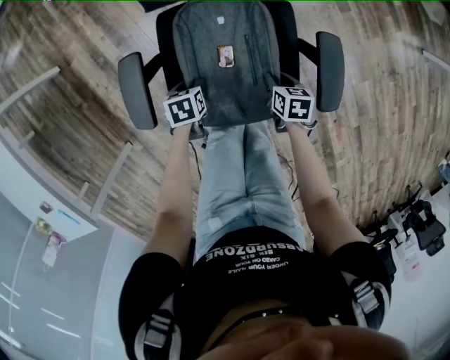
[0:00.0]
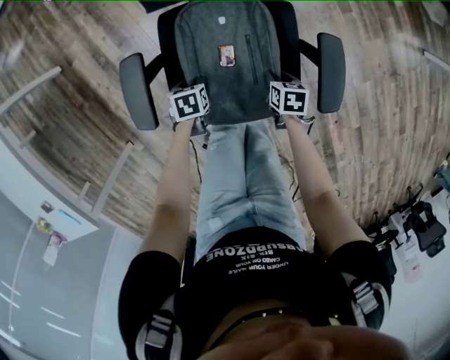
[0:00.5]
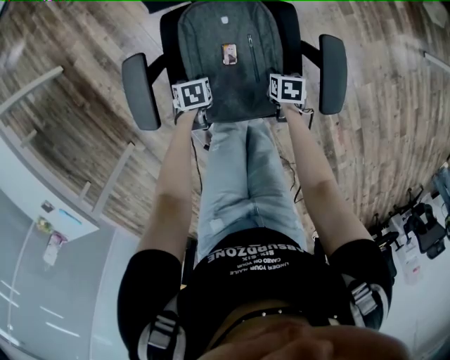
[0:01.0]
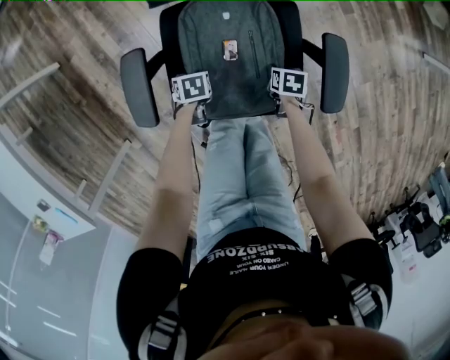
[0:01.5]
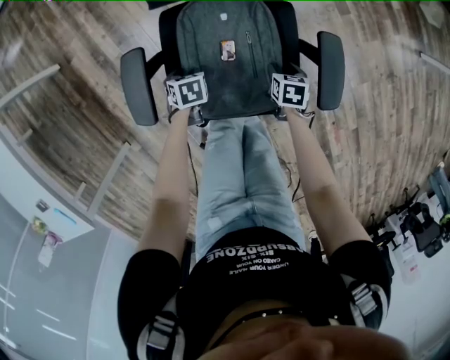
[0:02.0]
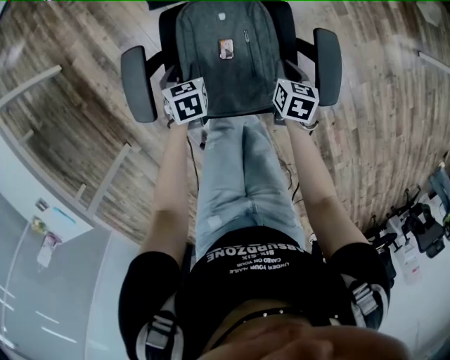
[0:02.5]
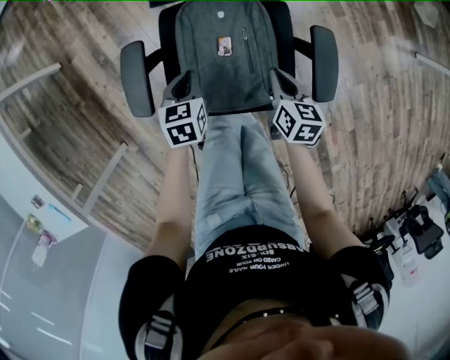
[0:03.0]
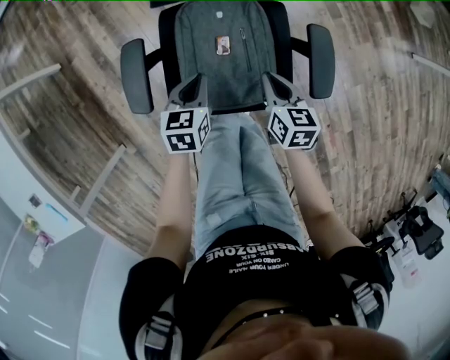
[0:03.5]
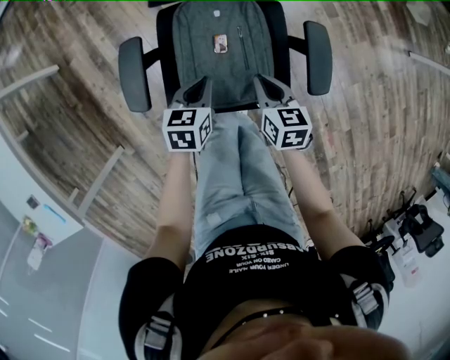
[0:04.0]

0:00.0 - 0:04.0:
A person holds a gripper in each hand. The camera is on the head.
0:00.0 - 0:02.0: The right gripper opens.
0:02.0 - 0:04.0: The grippers both shift upward by approximately 15 cm. The left gripper changes its angle by about 30 degrees, and closes its fingers. Meanwhile the right gripper changes its angle by some 30 degrees, and closes up.

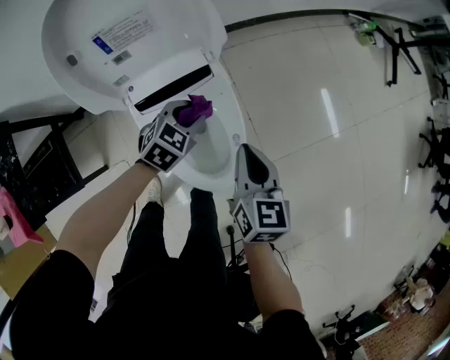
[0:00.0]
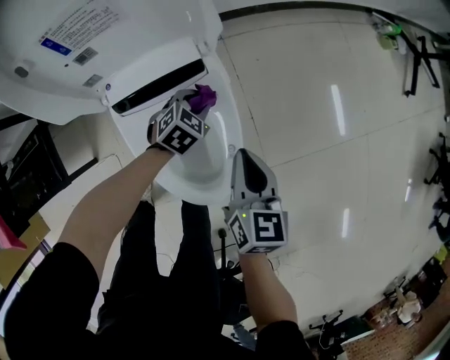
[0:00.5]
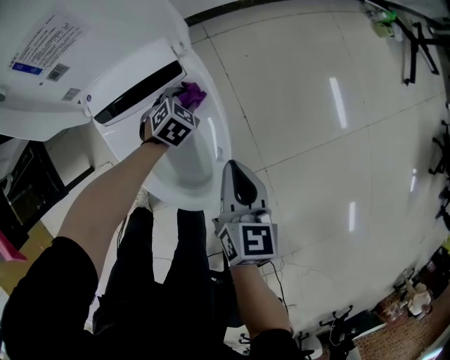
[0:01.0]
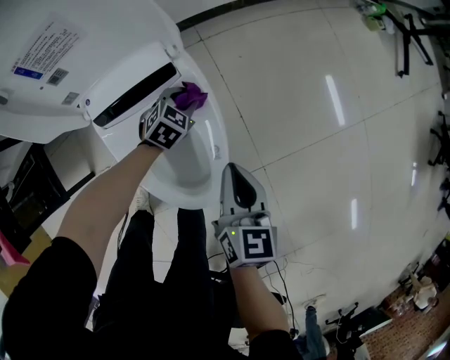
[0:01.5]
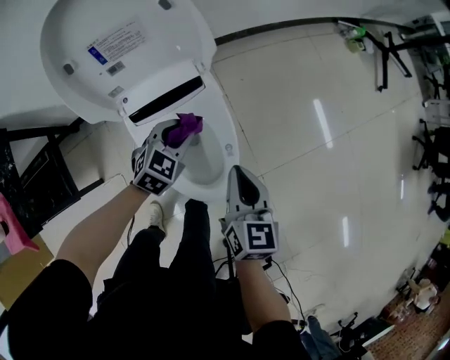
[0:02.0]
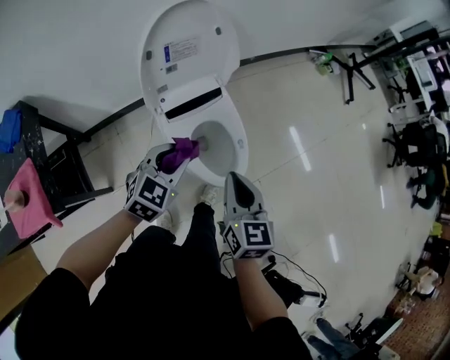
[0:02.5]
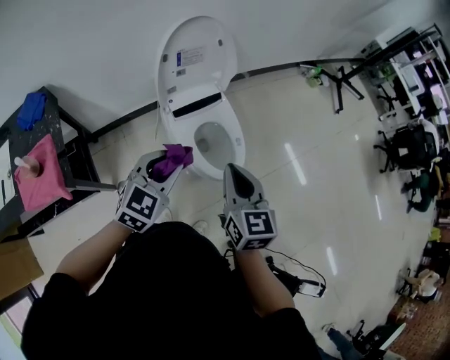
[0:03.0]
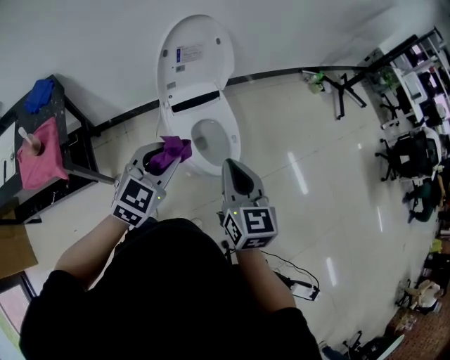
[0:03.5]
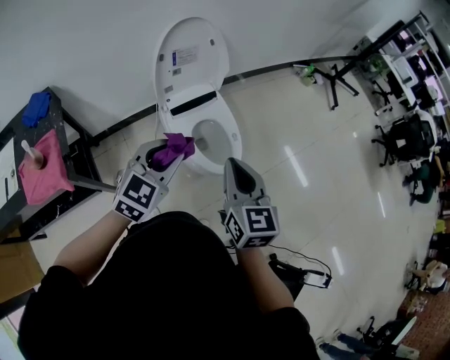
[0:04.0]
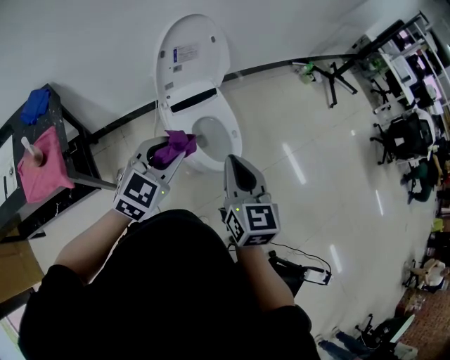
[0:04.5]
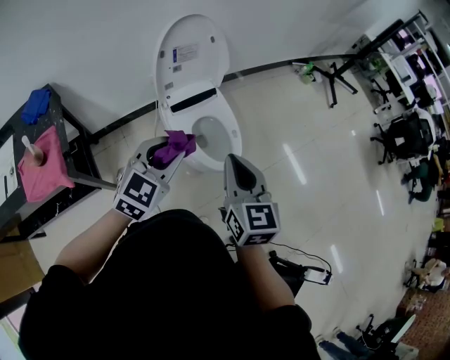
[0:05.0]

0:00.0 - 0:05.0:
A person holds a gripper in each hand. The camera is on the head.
0:00.0 - 0:02.5: The right gripper heads backward, upward and to the left, covering approximately 30 cm, while the left gripper heads upward, backward and to the left, covering about 35 cm, and changes its angle by roughly 20 degrees.
0:02.5 - 0:05.0: The two grippers go some 20 cm backward and upward.

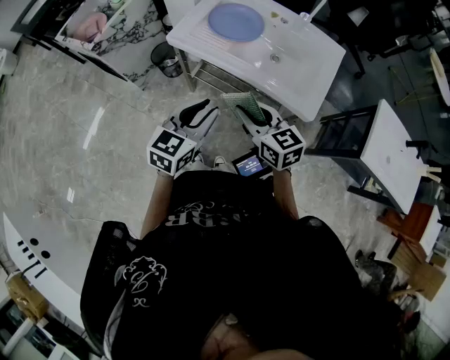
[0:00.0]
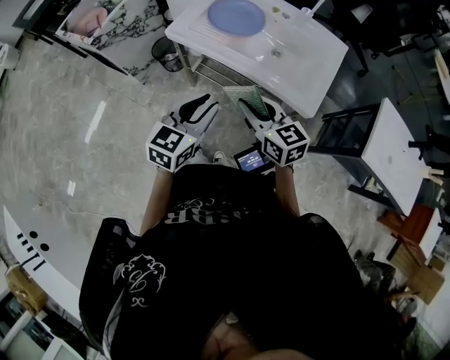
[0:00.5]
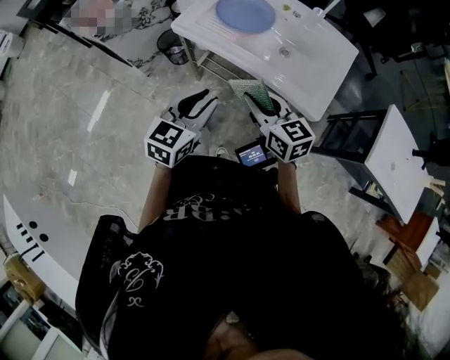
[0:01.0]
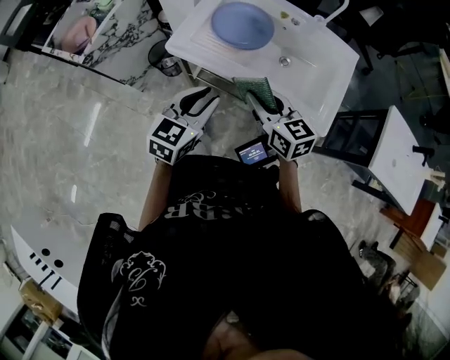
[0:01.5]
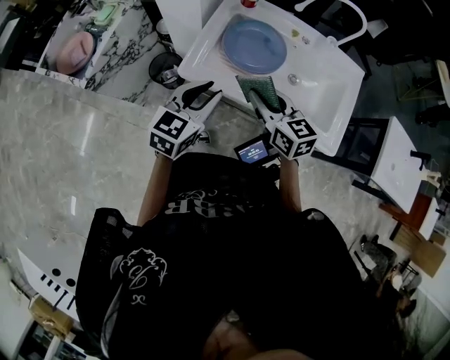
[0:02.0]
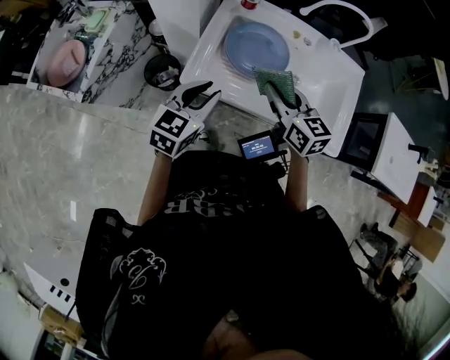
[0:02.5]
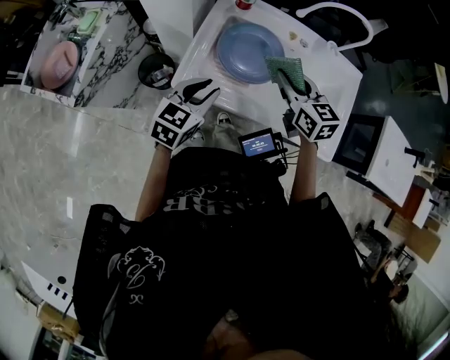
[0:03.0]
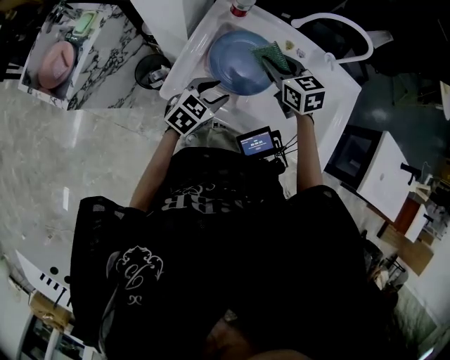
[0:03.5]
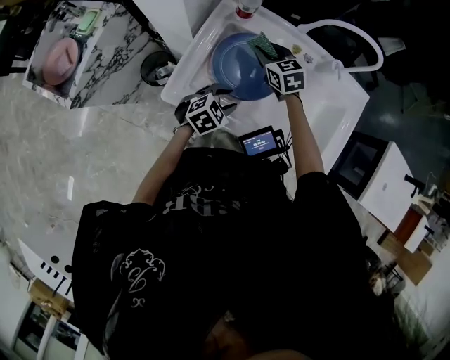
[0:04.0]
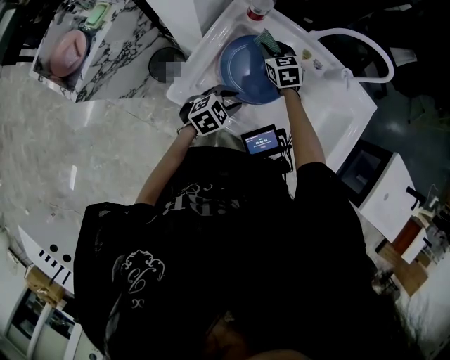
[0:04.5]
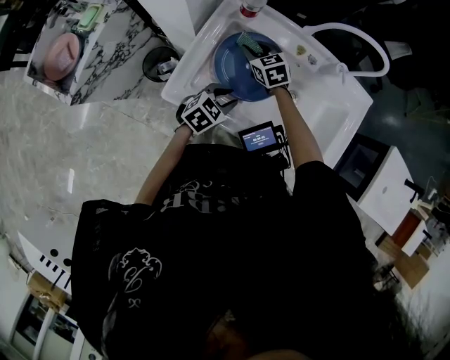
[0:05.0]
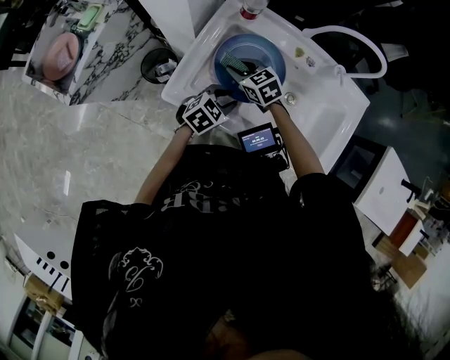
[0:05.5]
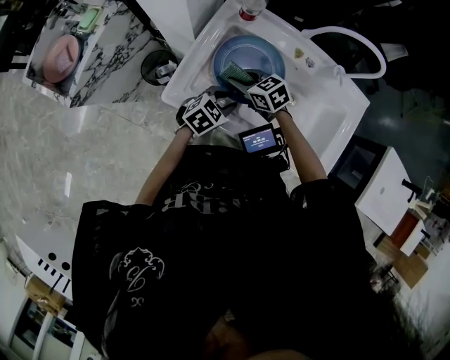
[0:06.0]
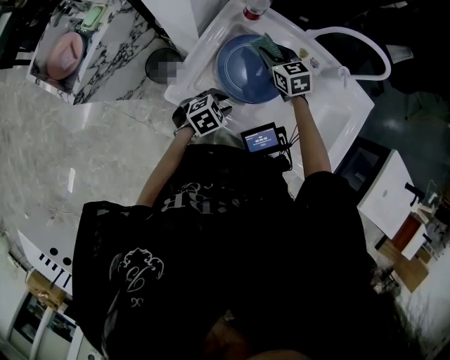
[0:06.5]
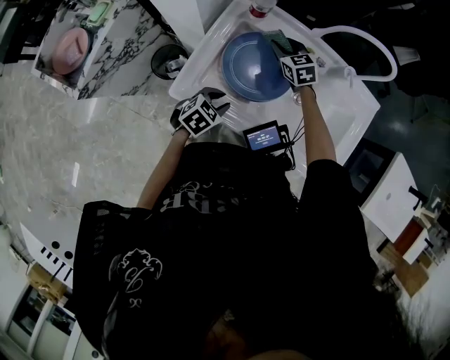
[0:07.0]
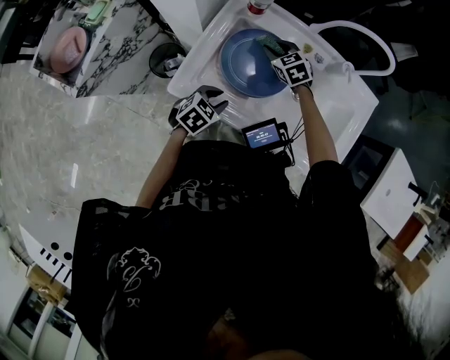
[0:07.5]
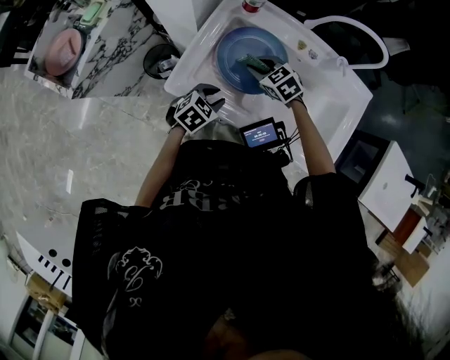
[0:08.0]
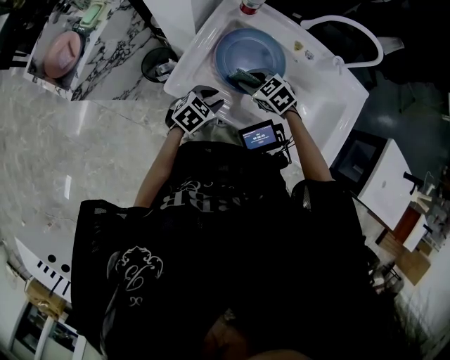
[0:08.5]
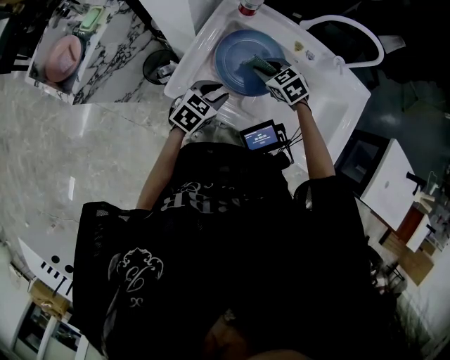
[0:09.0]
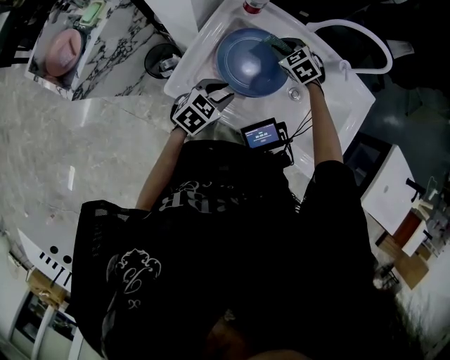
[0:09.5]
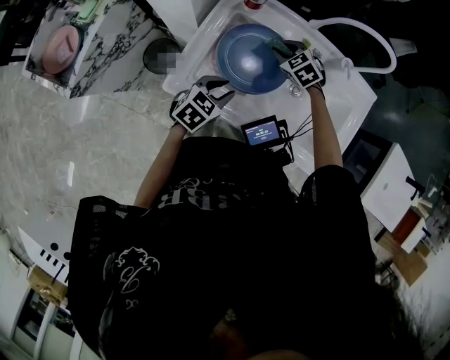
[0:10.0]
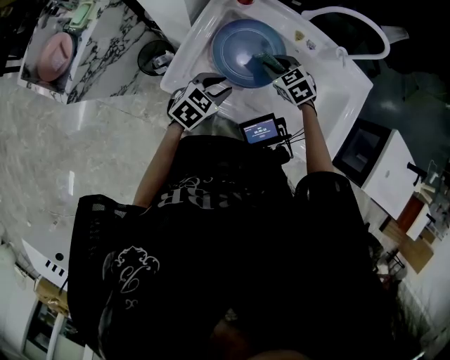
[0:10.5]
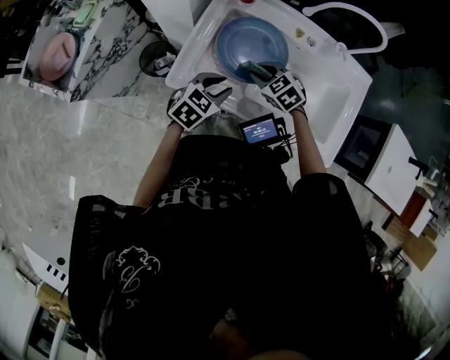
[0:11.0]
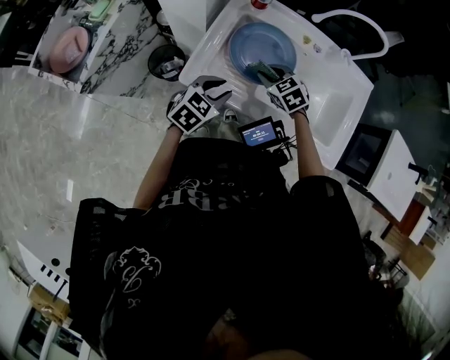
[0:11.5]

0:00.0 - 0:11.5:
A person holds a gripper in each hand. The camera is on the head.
0:00.0 - 0:02.0: The left gripper heads forward and to the left, covering about 25 cm. The right gripper moves forward, some 25 cm.
0:02.0 - 0:04.0: The left gripper shifts about 25 cm downward, forward and to the right, and changes its angle by roughly 40 degrees, while the right gripper travels forward and downward by roughly 30 cm, and turns by approximately 20 degrees.
0:04.0 - 0:06.0: The right gripper ends up some 15 cm from where it was, and changes its angle by approximately 30 degrees.
0:06.0 - 0:07.5: The right gripper moves some 15 cm, and changes its angle by some 20 degrees. The left gripper changes place by some 5 cm.
0:07.5 - 0:09.5: The right gripper reaches some 15 cm backward, then returns; the left gripper moves about 5 cm.
0:09.5 - 0:11.5: The right gripper moves backward, roughly 15 cm. Meanwhile the left gripper goes roughly 5 cm backward.

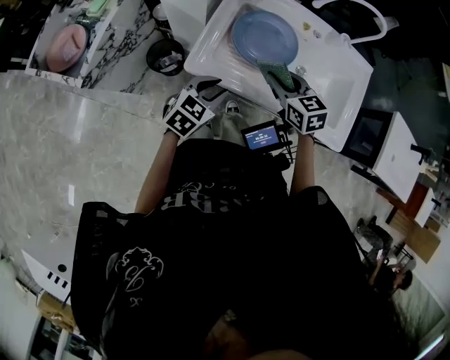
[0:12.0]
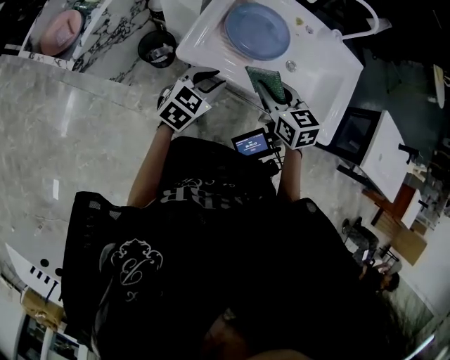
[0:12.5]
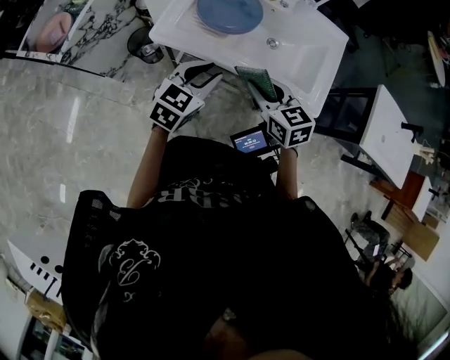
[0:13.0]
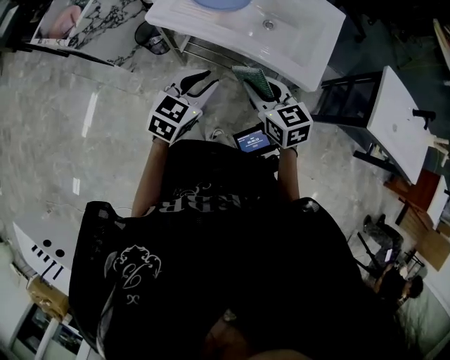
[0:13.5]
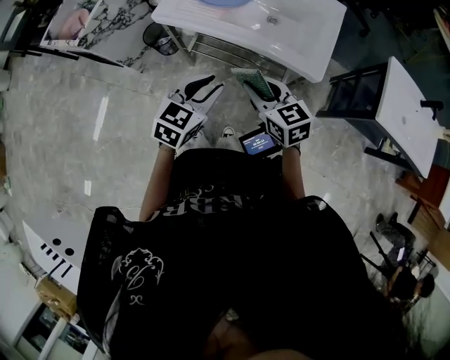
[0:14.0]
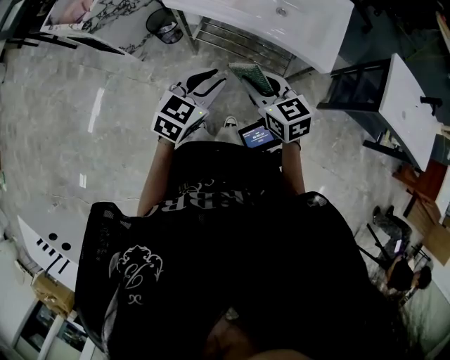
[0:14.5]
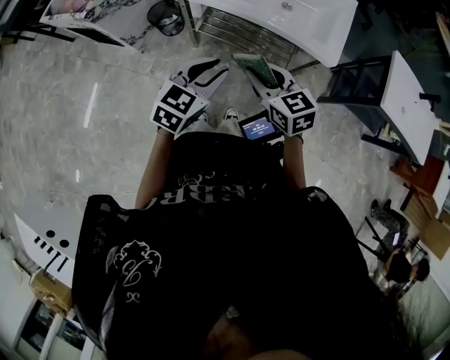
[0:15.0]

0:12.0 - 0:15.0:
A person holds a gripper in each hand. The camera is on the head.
0:12.0 - 0:13.5: The right gripper shifts about 30 cm backward and to the right. The left gripper moves backward, to the right and upward, approximately 30 cm.
0:13.5 - 0:15.0: The left gripper shifts roughly 10 cm backward and to the left. The right gripper moves to the left and backward, some 15 cm.

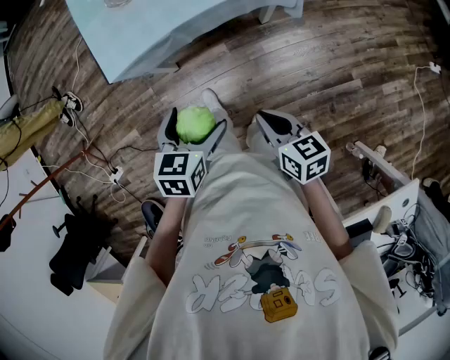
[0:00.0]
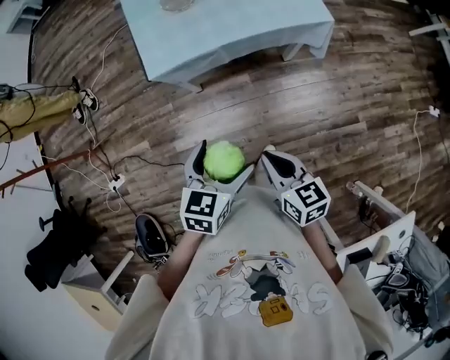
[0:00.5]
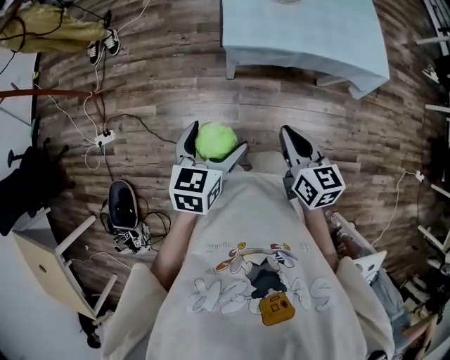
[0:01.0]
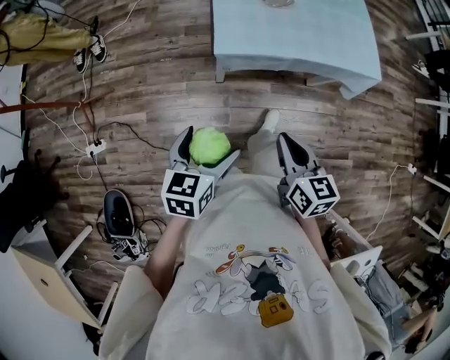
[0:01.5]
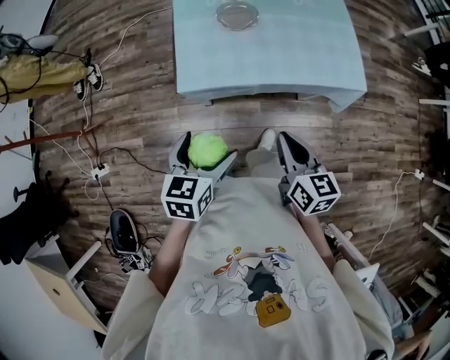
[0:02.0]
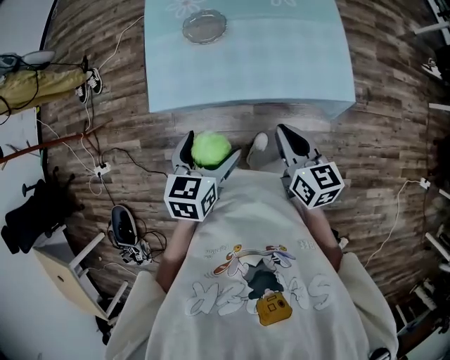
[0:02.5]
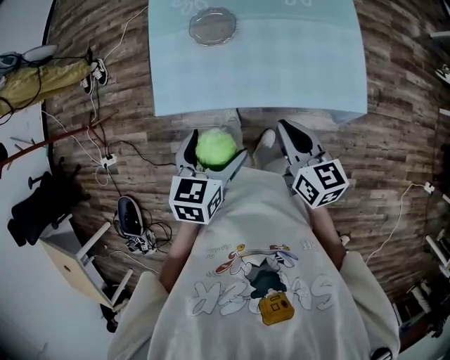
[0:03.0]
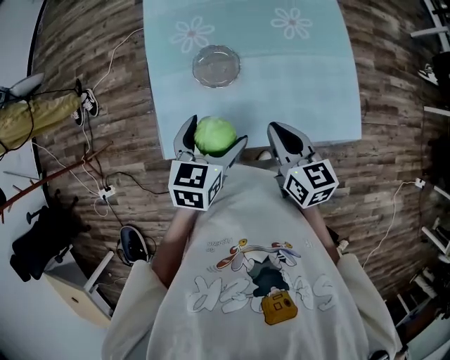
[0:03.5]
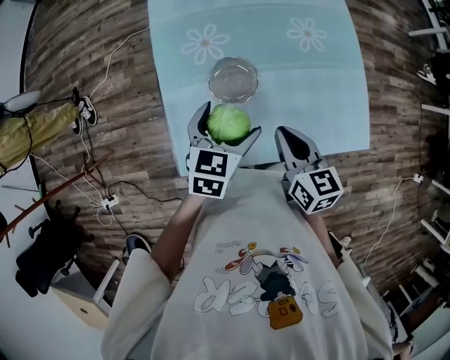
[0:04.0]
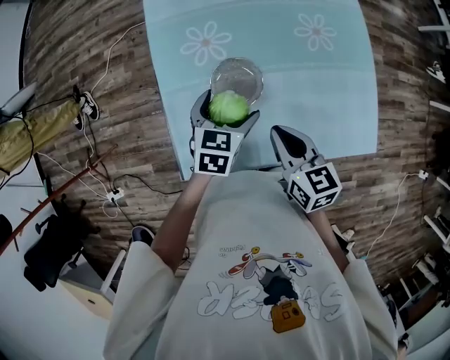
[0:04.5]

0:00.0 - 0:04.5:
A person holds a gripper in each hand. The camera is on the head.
0:00.0 - 0:02.0: The right gripper travels forward, to the left and upward by about 25 cm; the left gripper heads to the left and forward, covering approximately 20 cm, and swivels approximately 20 degrees.
0:02.0 - 0:04.5: Both grippers travel together forward, approximately 40 cm.
